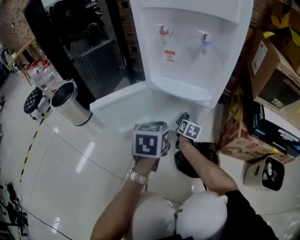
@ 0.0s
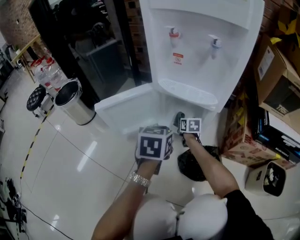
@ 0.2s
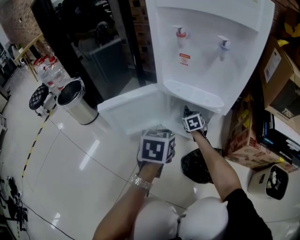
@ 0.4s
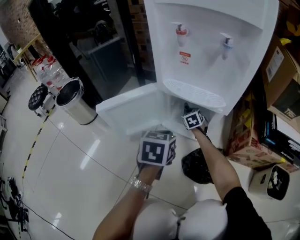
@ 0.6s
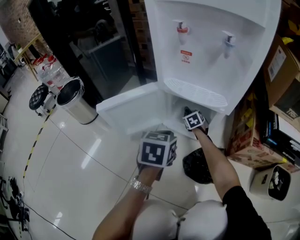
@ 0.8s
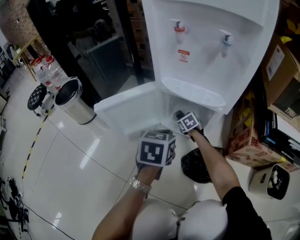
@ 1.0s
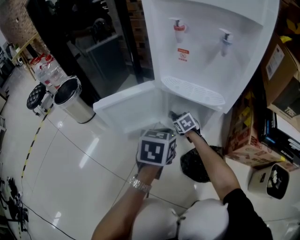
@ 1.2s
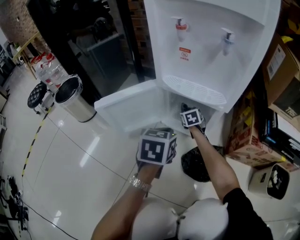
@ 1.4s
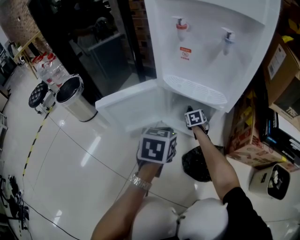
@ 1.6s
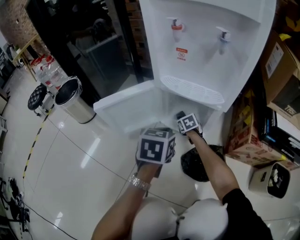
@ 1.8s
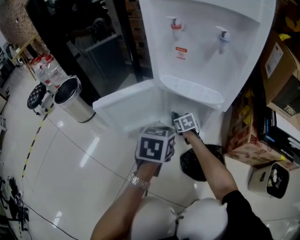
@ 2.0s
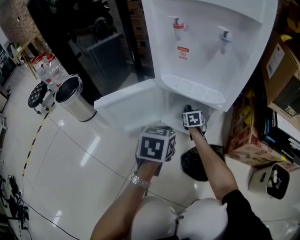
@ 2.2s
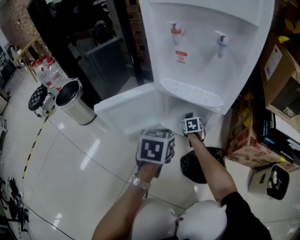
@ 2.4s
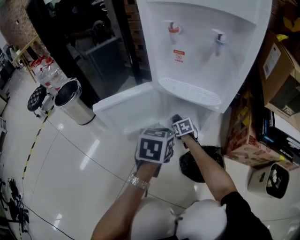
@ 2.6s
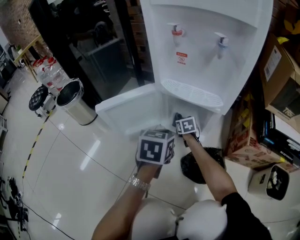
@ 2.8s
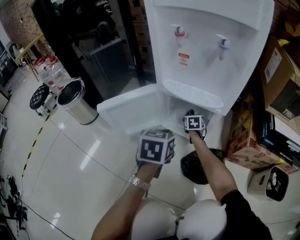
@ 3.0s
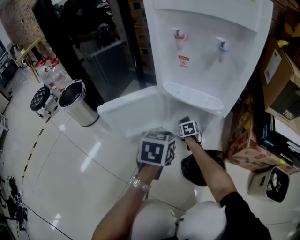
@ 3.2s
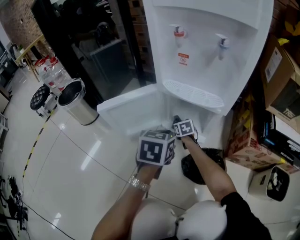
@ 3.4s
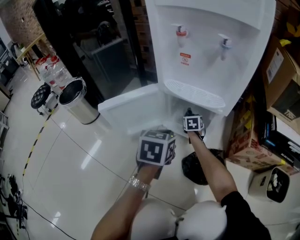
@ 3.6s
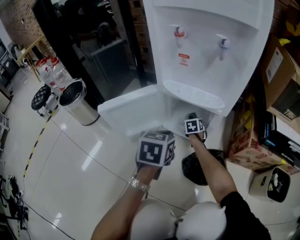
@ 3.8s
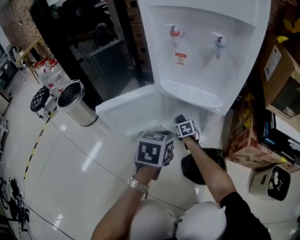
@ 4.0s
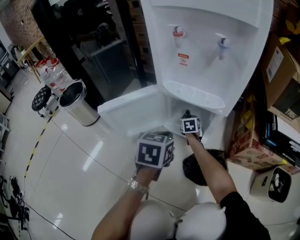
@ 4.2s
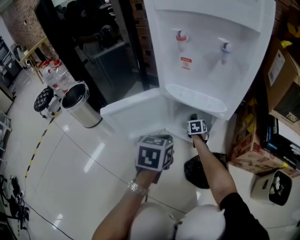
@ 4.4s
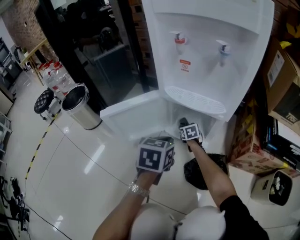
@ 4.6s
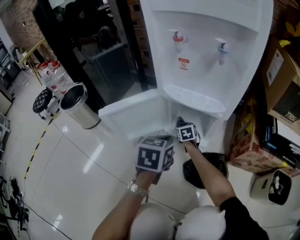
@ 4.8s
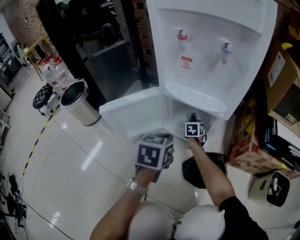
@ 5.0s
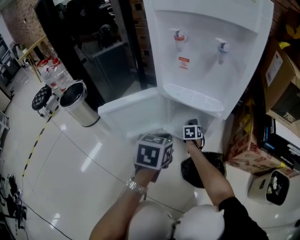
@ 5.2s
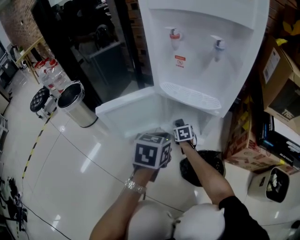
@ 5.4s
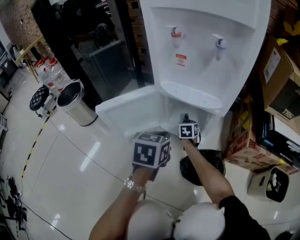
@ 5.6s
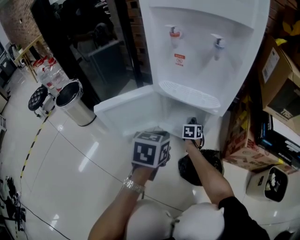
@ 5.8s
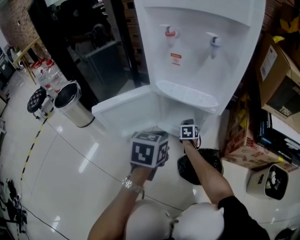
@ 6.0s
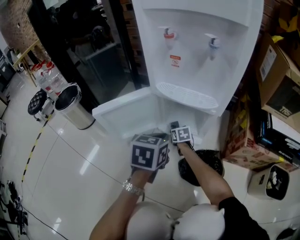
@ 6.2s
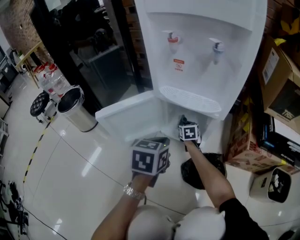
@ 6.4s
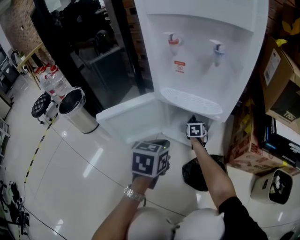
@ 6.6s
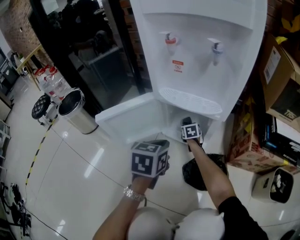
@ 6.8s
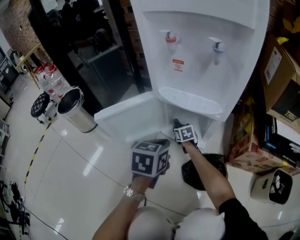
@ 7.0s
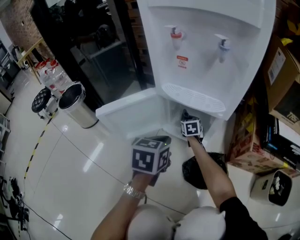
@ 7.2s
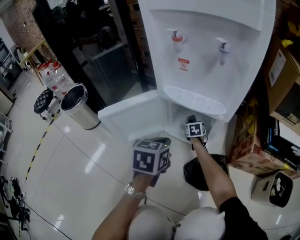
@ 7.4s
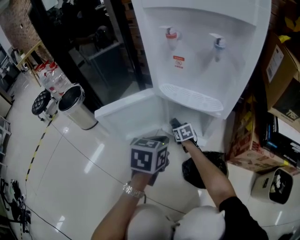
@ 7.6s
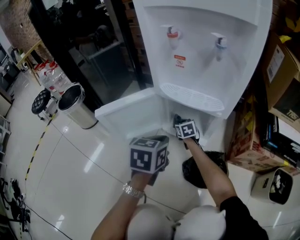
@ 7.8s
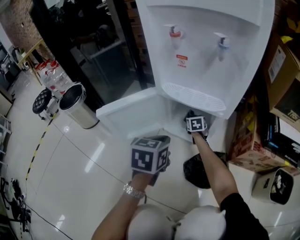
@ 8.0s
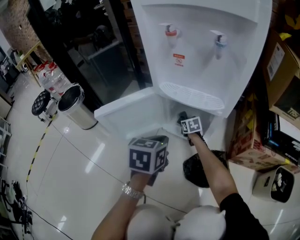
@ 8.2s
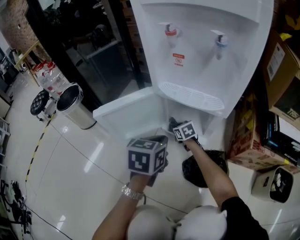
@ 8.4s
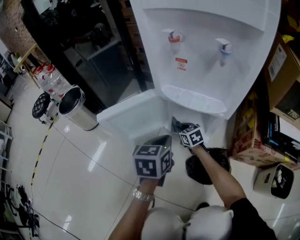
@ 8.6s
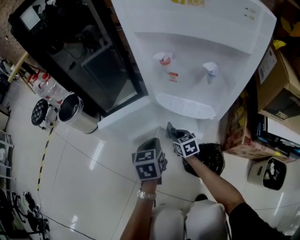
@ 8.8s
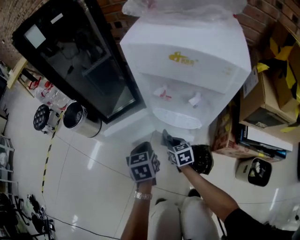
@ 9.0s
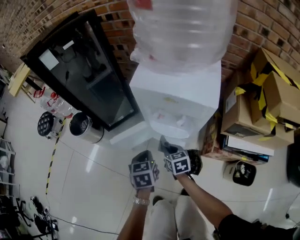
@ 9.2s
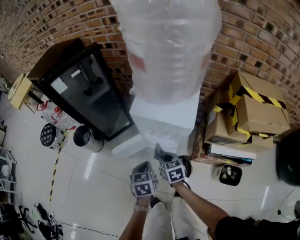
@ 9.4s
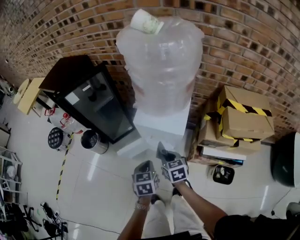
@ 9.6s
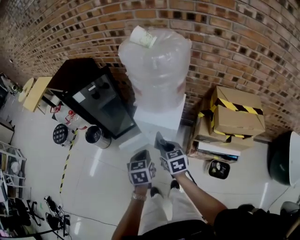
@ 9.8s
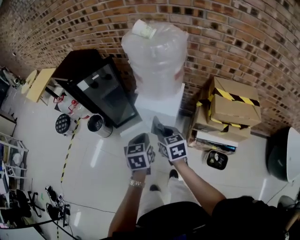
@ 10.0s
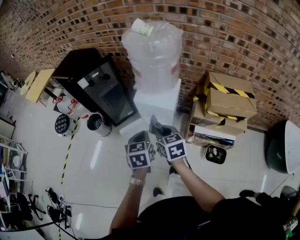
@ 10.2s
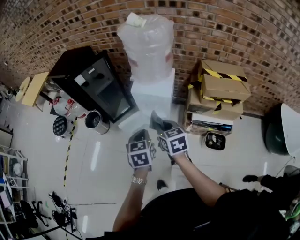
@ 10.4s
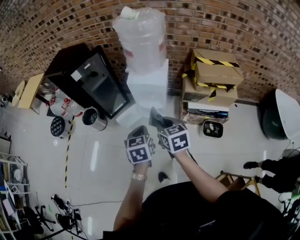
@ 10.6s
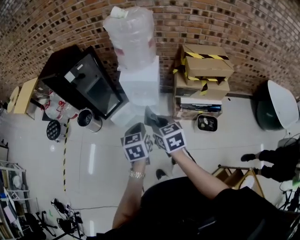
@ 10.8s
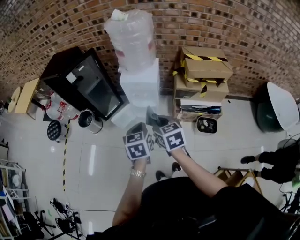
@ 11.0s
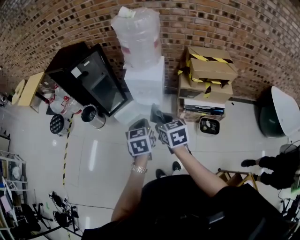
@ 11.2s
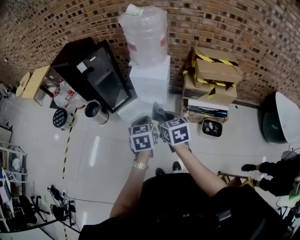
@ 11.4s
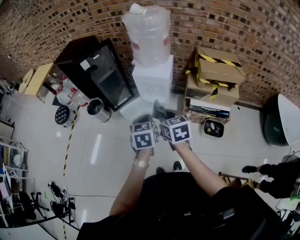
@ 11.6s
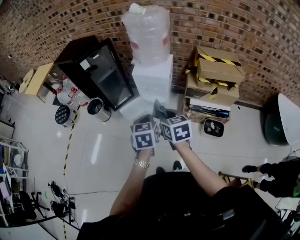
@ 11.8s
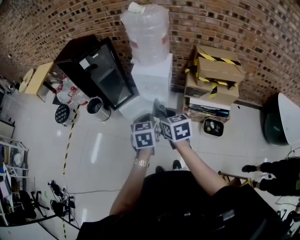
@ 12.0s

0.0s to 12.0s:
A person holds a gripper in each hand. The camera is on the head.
0.0s to 1.6s: The right gripper travels forward by some 10 cm, and turns by some 40 degrees.
1.6s to 3.0s: The right gripper moves left and right over roughly 10 cm, changing direction 3 times.
3.0s to 4.4s: The right gripper moves left and right over some 10 cm, changing direction 3 times.
4.4s to 6.0s: The right gripper moves left and right over approximately 10 cm, changing direction 4 times.
6.0s to 7.6s: The right gripper moves left and right over about 10 cm, changing direction 4 times, and rotates approximately 20 degrees.
7.6s to 9.0s: The left gripper goes about 15 cm upward and to the left, and swivels approximately 20 degrees. The right gripper is displaced upward and backward by approximately 30 cm.
9.0s to 10.4s: Both grippers travel together upward, some 60 cm.
10.4s to 12.0s: The grippers both shift backward by some 10 cm.

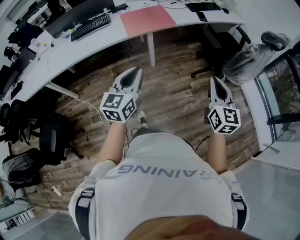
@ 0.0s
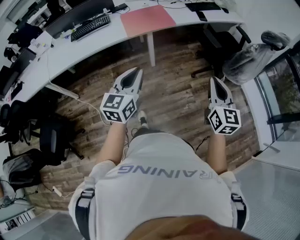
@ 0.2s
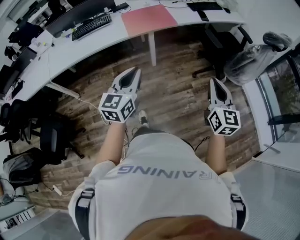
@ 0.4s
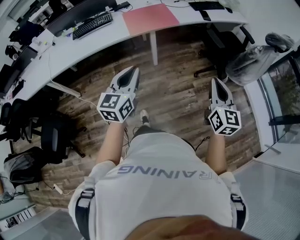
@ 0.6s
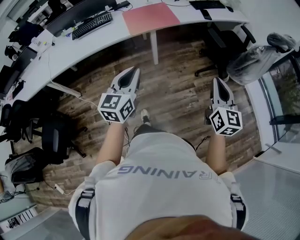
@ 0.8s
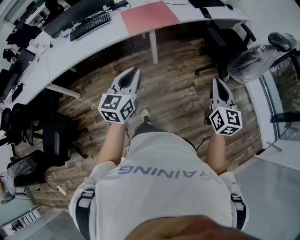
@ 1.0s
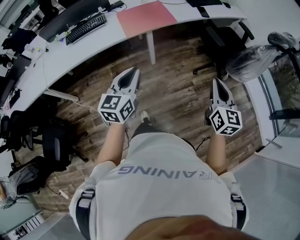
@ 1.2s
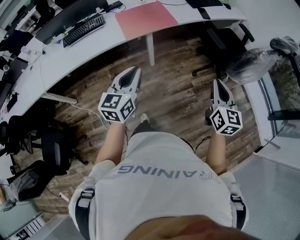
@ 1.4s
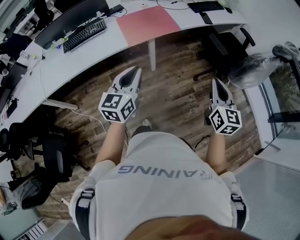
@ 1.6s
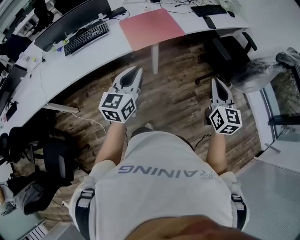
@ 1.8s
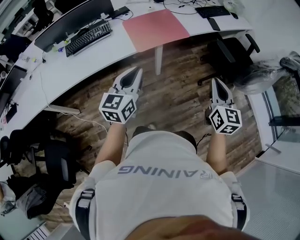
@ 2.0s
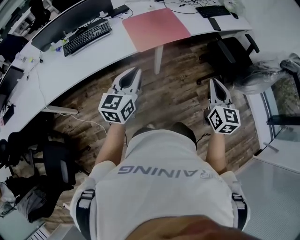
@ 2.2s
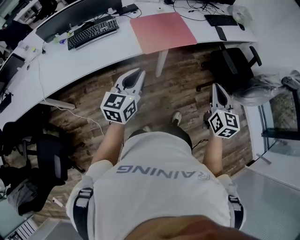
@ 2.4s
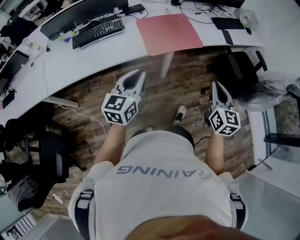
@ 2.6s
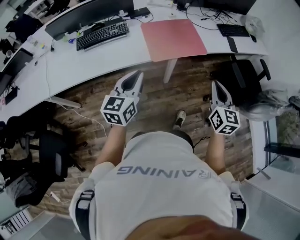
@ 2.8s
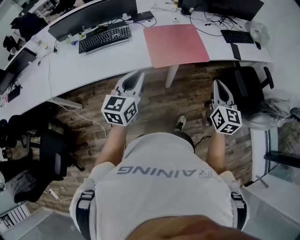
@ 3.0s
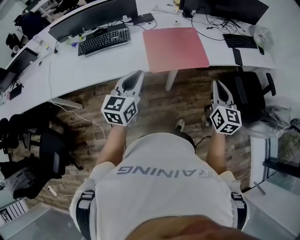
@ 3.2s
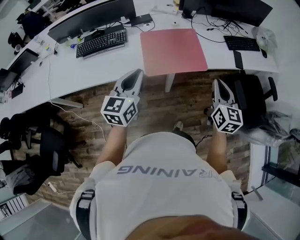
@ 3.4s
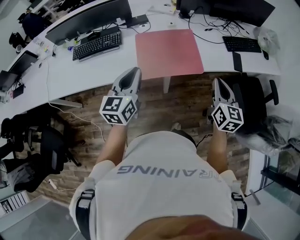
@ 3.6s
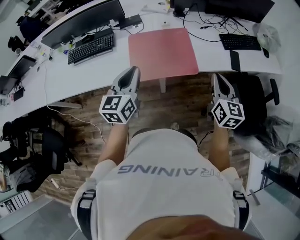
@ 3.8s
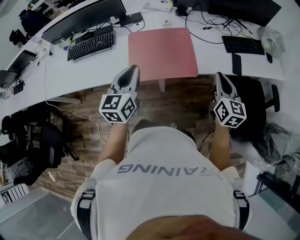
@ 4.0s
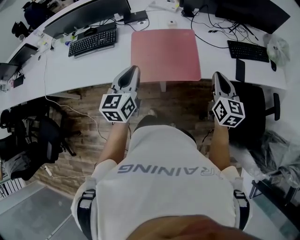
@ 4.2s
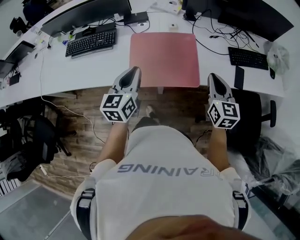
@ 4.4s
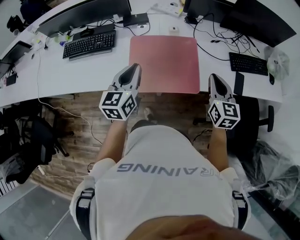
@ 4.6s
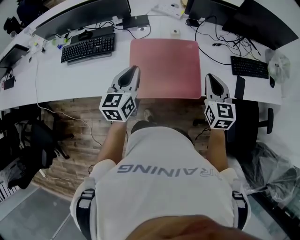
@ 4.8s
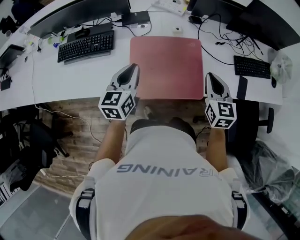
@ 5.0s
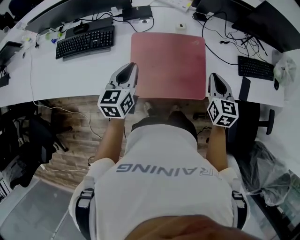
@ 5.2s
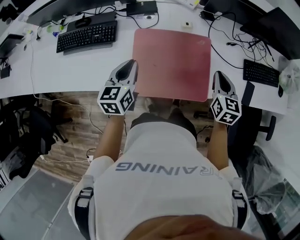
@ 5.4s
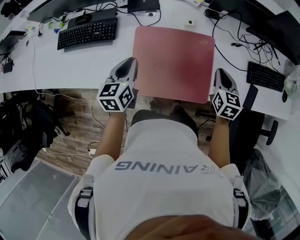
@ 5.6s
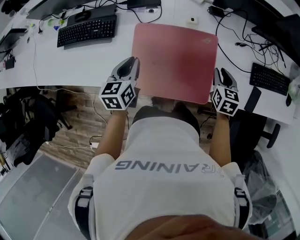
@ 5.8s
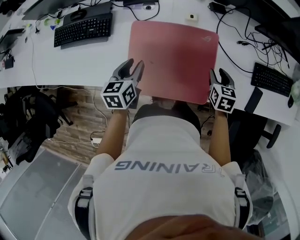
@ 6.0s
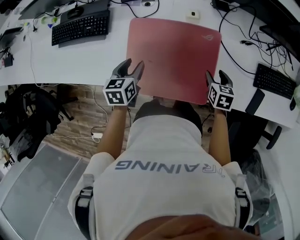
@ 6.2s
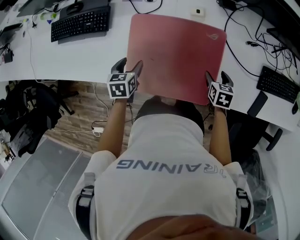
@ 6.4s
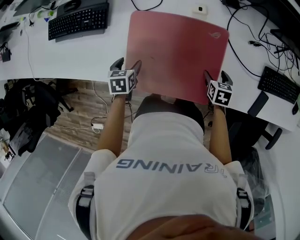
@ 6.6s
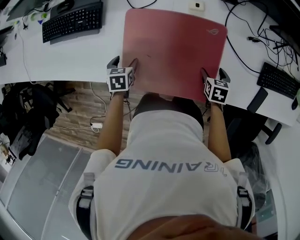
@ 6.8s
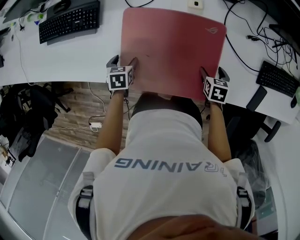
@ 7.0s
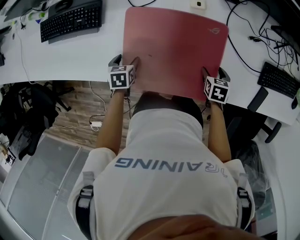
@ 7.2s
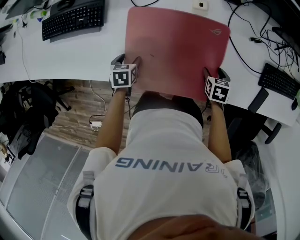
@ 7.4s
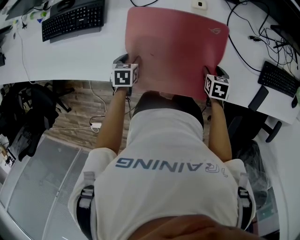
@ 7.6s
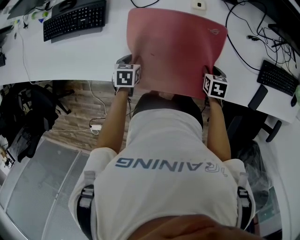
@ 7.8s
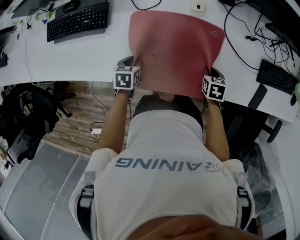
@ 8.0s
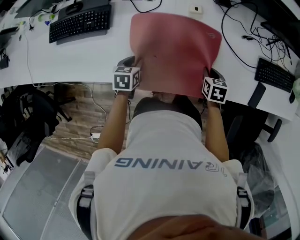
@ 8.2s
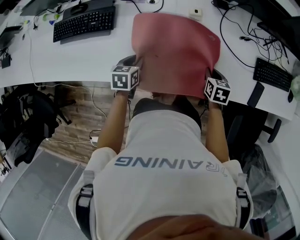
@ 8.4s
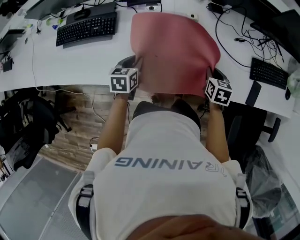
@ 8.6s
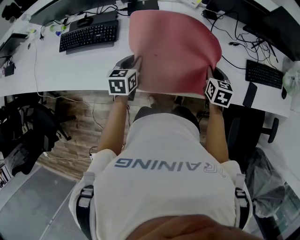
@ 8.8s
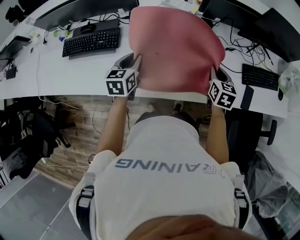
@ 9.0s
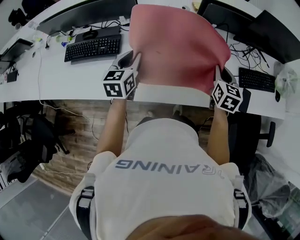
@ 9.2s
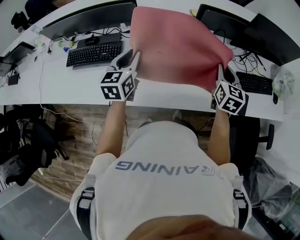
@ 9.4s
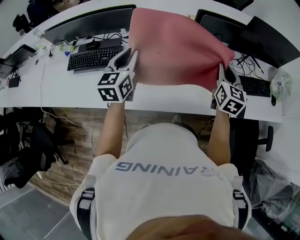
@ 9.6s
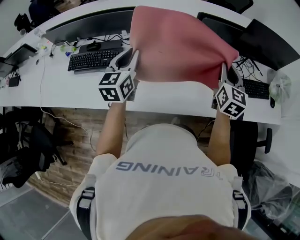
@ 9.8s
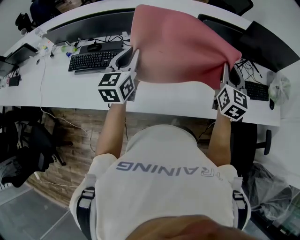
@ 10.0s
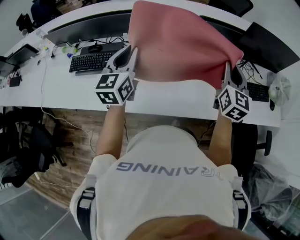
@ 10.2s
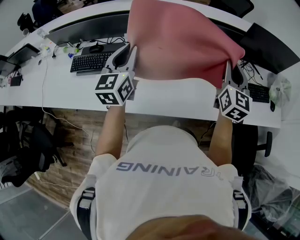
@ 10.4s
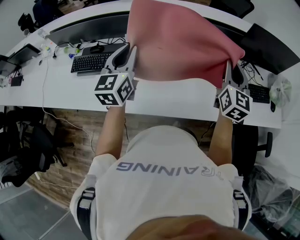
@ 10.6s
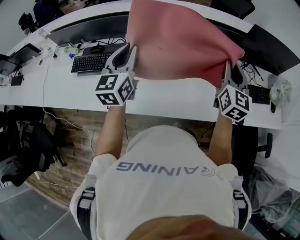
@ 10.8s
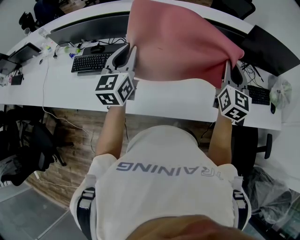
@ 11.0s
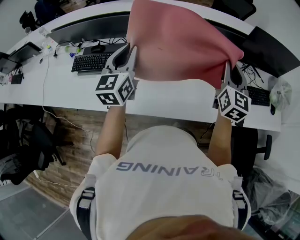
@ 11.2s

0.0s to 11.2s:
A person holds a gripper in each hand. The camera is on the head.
0.0s to 1.6s: The grippers both shift forward and to the left by some 15 cm.
1.6s to 3.2s: Both grippers move forward and to the left, about 30 cm.
3.2s to 4.8s: Both grippers travel together forward, about 30 cm. The right gripper turns by roughly 20 degrees.
4.8s to 6.4s: The right gripper heads downward and forward, covering about 35 cm, angles its fingers downward, by approximately 40 degrees, and opens. Meanwhile the left gripper heads downward, covering some 25 cm, angles its fingers downward, by approximately 40 degrees, and opens its fingers.
6.4s to 8.0s: The left gripper closes its fingers, while the right gripper closes its fingers.
8.0s to 9.6s: Both grippers move upward, some 35 cm. The left gripper points its fingers roughly 50 degrees further upward. Meanwhile the right gripper tilts its fingers some 50 degrees upward.
9.6s to 11.2s: Both grippers move upward, about 5 cm.

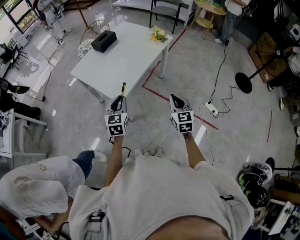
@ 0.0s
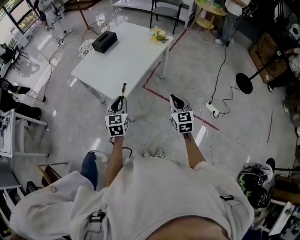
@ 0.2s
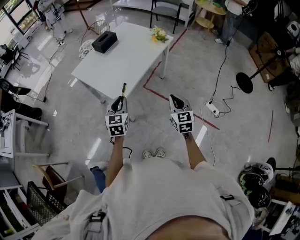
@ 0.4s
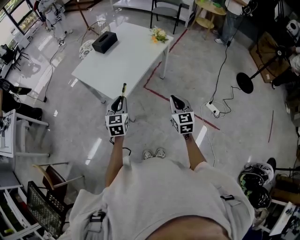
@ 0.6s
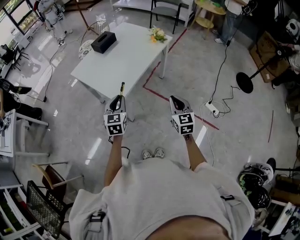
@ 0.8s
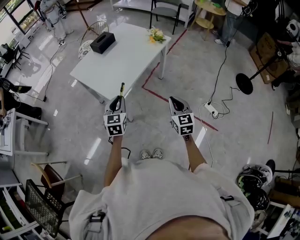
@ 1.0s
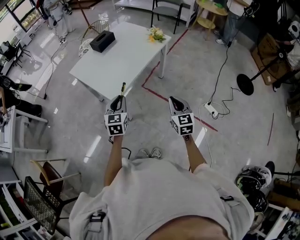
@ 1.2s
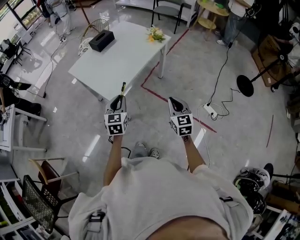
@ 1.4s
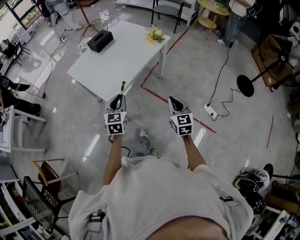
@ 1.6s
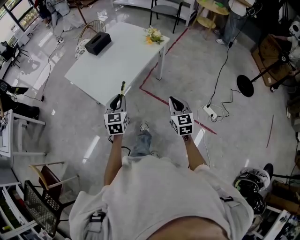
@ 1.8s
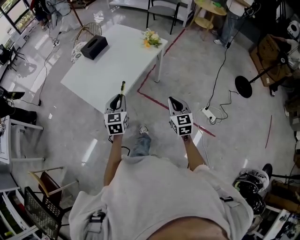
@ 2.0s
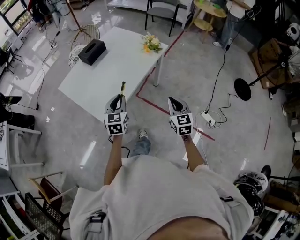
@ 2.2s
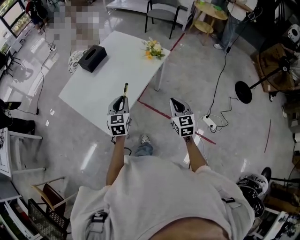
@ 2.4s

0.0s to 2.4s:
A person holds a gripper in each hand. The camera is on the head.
0.0s to 1.2s: There are only small adjustments of the grippers.
1.2s to 2.4s: Both grippers move forward, roughly 20 cm.
